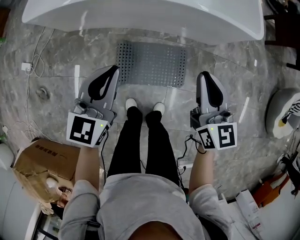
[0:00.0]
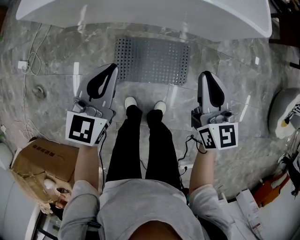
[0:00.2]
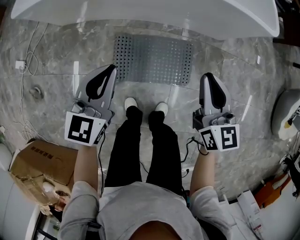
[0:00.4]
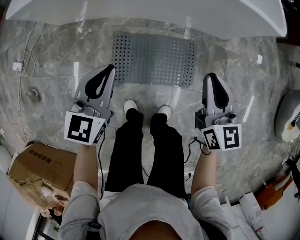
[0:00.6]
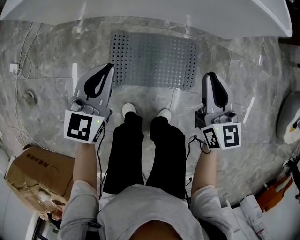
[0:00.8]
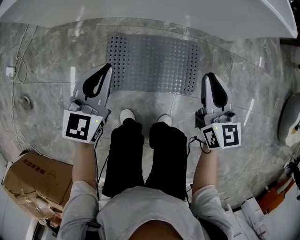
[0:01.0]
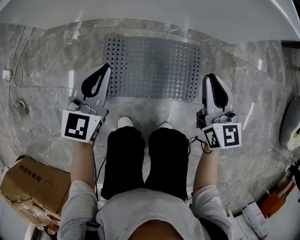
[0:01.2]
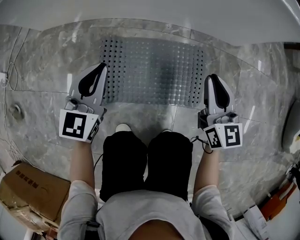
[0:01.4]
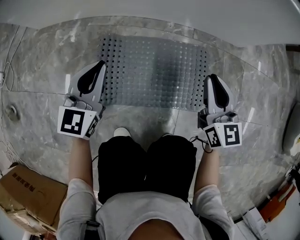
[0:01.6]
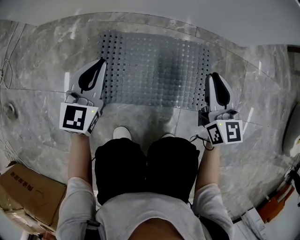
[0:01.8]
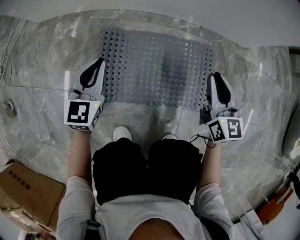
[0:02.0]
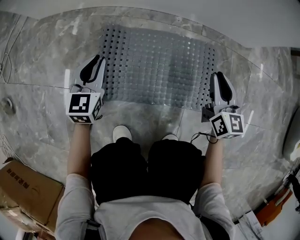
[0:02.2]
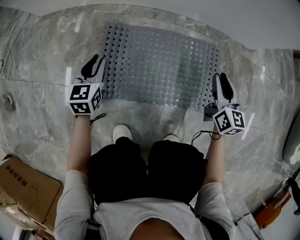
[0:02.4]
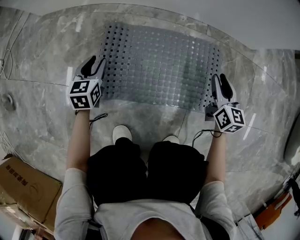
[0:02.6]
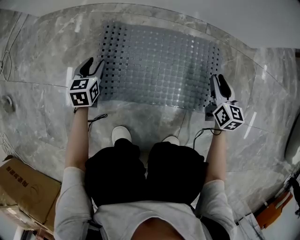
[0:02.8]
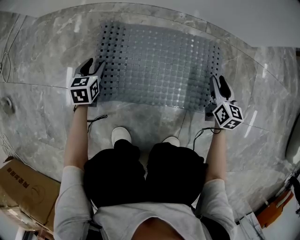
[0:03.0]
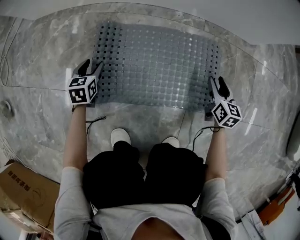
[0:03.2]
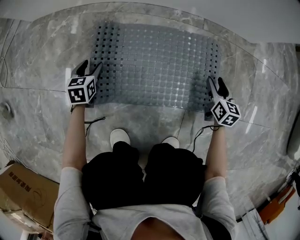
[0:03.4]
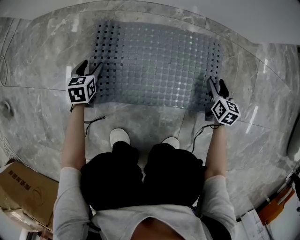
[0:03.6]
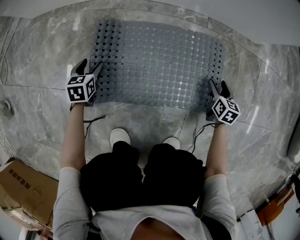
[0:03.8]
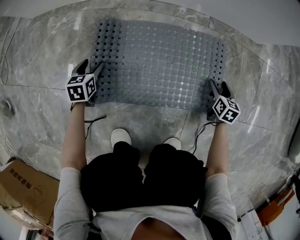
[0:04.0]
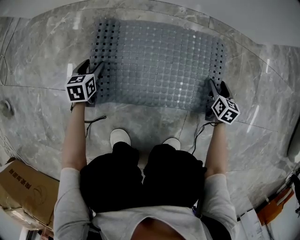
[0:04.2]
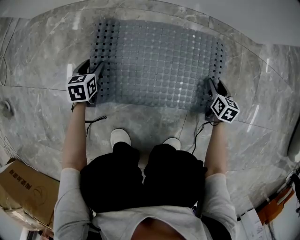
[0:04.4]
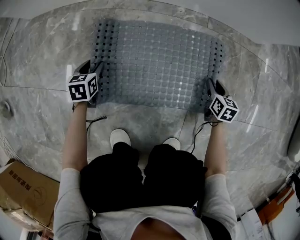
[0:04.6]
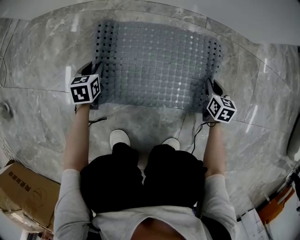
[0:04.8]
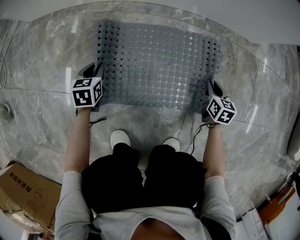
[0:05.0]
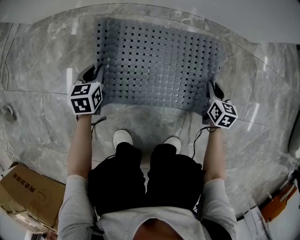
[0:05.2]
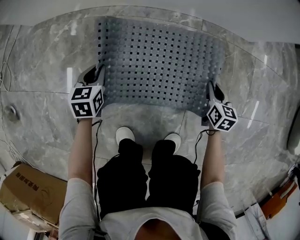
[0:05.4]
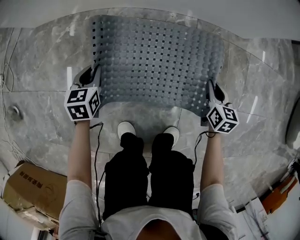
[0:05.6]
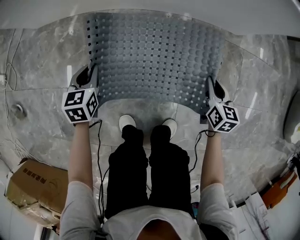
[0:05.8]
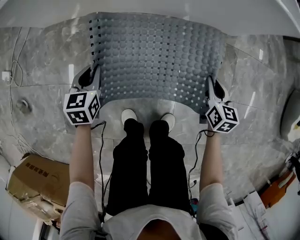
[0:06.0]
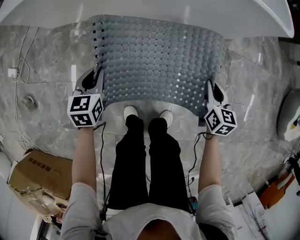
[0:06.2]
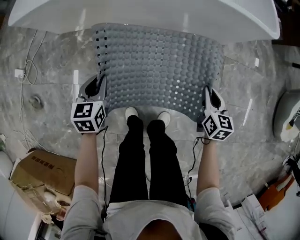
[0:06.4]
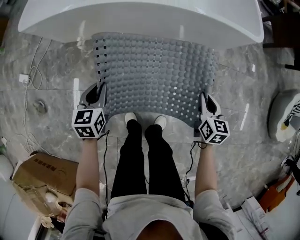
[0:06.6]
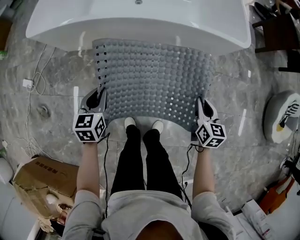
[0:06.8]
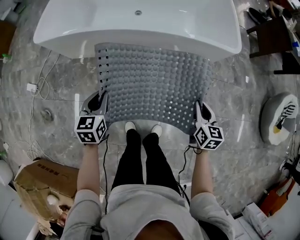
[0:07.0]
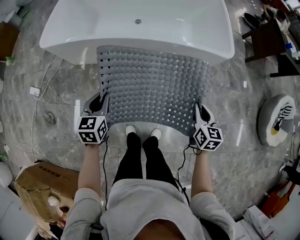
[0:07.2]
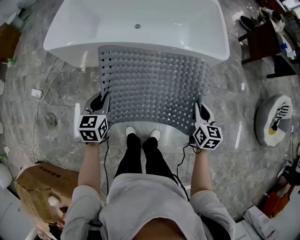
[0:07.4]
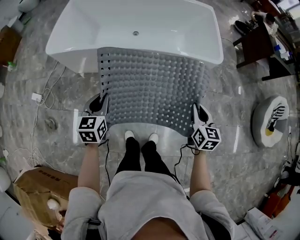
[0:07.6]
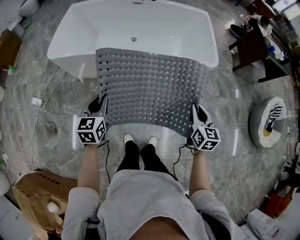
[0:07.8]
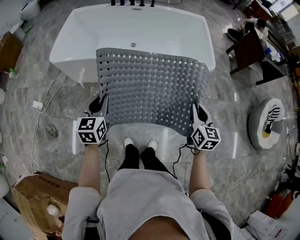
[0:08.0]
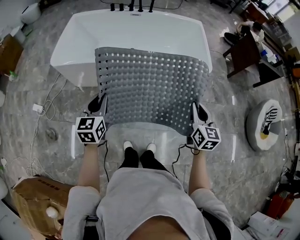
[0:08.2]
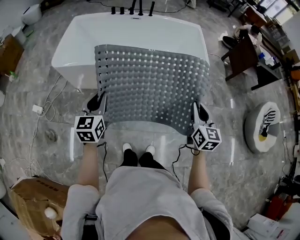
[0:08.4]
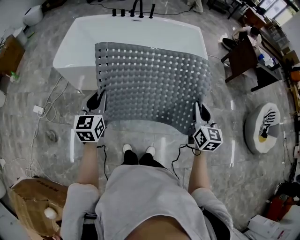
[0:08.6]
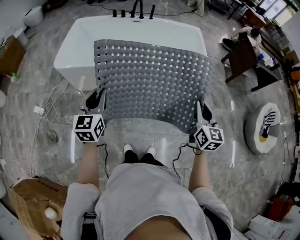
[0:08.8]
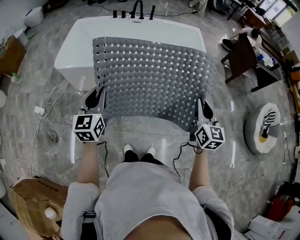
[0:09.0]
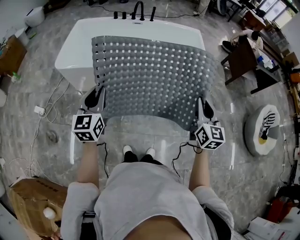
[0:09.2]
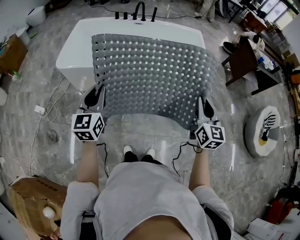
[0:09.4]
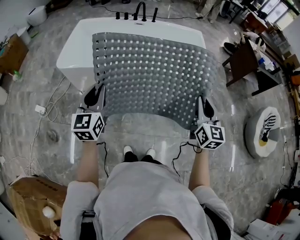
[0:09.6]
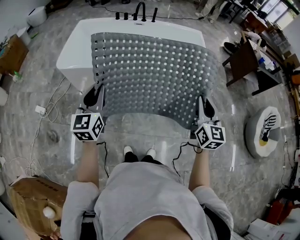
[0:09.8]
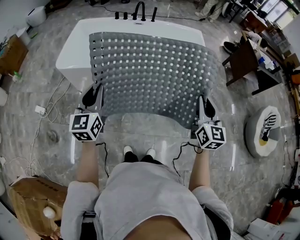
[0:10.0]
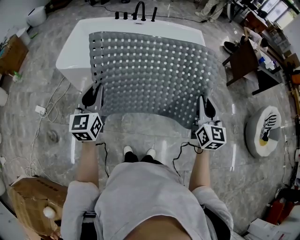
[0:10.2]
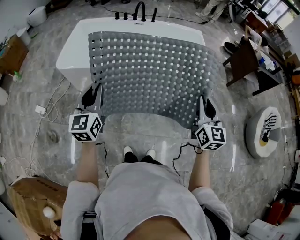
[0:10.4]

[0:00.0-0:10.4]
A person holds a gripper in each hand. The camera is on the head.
0.0 to 1.4 s: The two grippers go some 40 cm downward.
1.4 to 3.0 s: The grippers both shift downward by about 30 cm. The right gripper opens up. Meanwhile the left gripper swivels roughly 30 degrees, and opens.
3.0 to 4.4 s: The right gripper heads downward, covering approximately 10 cm.
4.4 to 6.0 s: Both grippers move upward, roughly 35 cm. The left gripper closes up, while the right gripper closes.
6.0 to 7.4 s: Both grippers travel together upward, approximately 50 cm.
7.4 to 9.0 s: Both grippers move upward, some 25 cm. The right gripper swivels about 20 degrees. The left gripper rotates roughly 20 degrees.
9.0 to 10.4 s: The grippers stay close to where they were, moving slightly.

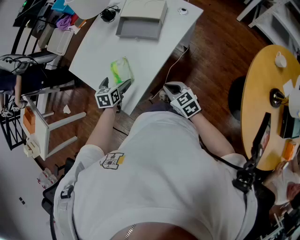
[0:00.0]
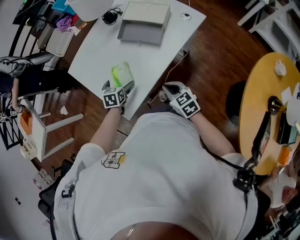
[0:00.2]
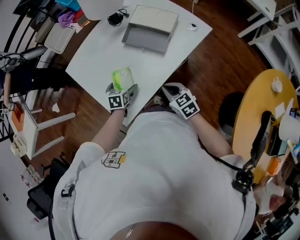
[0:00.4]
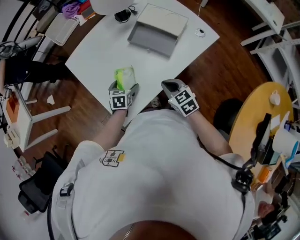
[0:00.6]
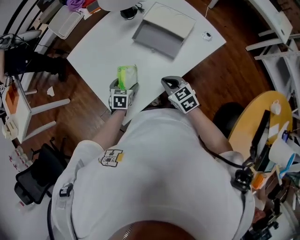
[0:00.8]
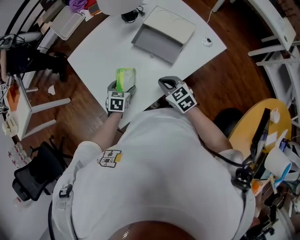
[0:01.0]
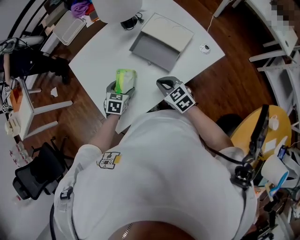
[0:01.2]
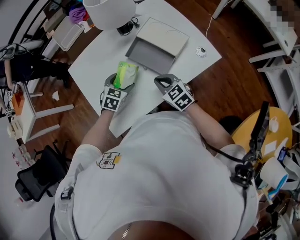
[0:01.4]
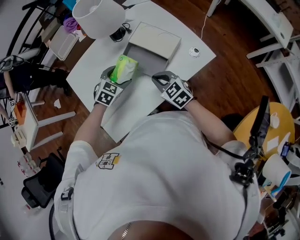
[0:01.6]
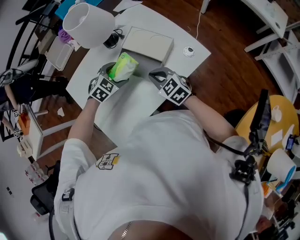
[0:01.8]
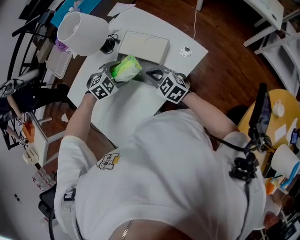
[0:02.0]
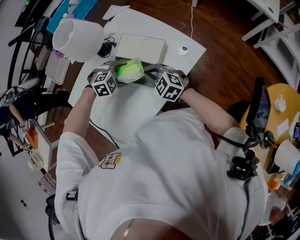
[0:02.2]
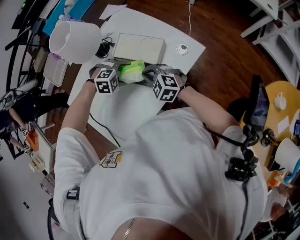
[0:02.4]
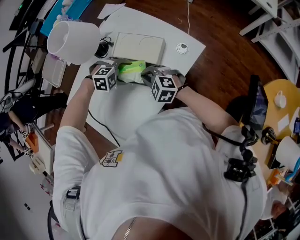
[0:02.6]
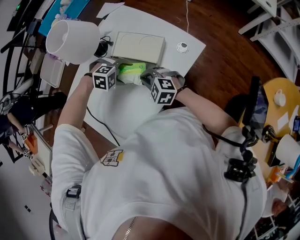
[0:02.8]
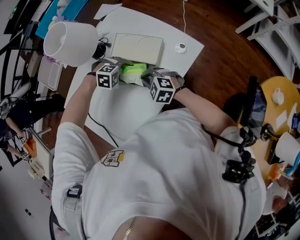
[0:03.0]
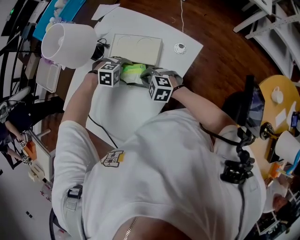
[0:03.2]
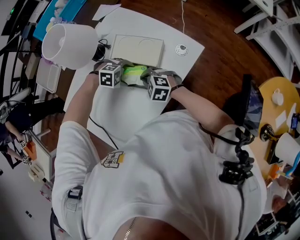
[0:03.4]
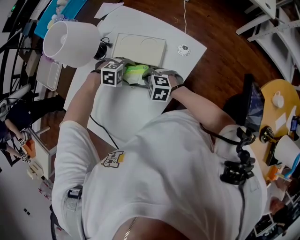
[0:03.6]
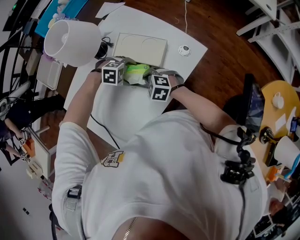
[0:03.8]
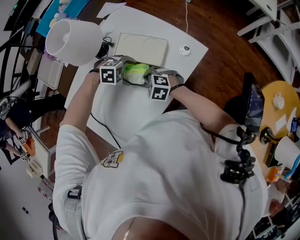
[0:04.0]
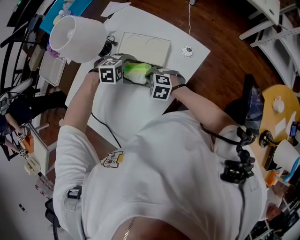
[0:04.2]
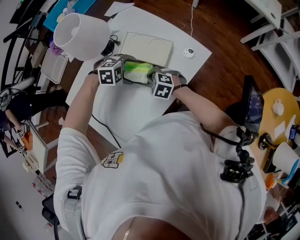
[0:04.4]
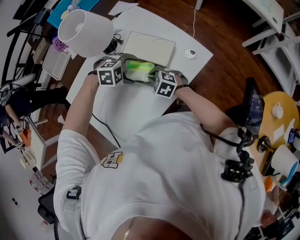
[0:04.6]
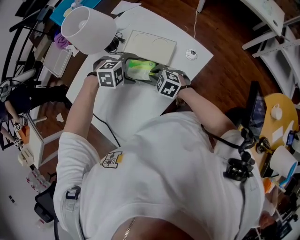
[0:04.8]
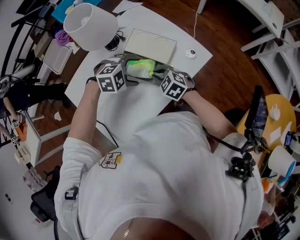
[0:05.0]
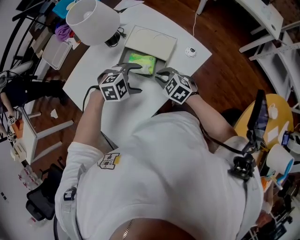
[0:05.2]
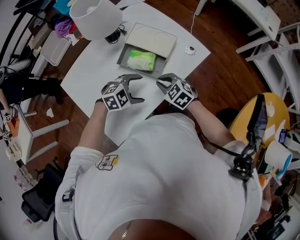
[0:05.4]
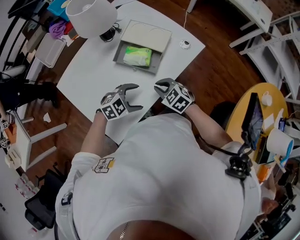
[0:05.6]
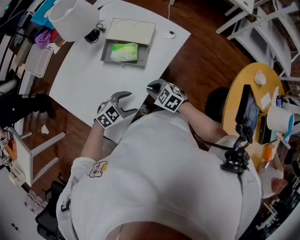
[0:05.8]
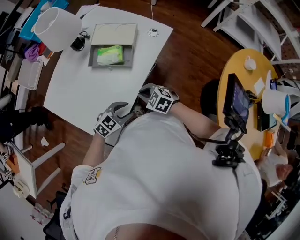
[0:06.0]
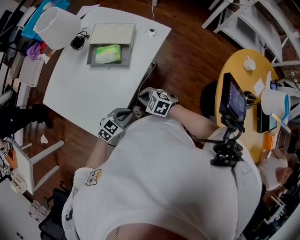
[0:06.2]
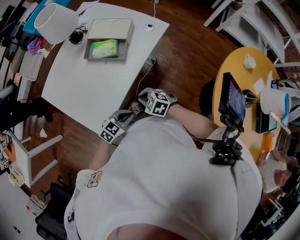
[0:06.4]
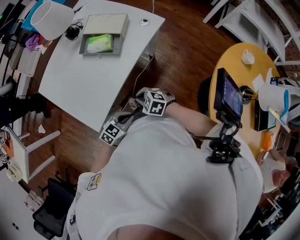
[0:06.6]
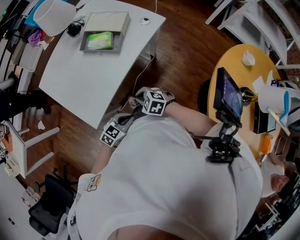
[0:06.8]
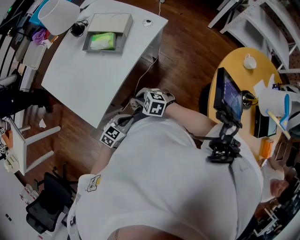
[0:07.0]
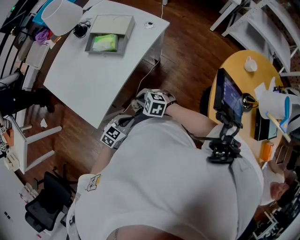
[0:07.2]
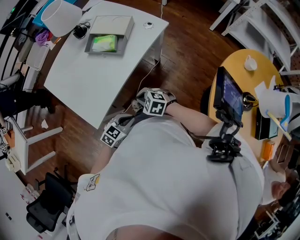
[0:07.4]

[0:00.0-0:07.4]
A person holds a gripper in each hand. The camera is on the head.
0.0 to 1.4 s: The left gripper shifts some 15 cm forward and to the right, while the right gripper travels forward by roughly 25 cm, and turns by approximately 30 degrees.
1.4 to 3.0 s: The left gripper changes place by approximately 15 cm, and twists roughly 80 degrees clockwise, seen from behind. The right gripper changes place by some 10 cm.
3.0 to 4.4 s: The grippers stay close to where they were, moving slightly.
4.4 to 6.0 s: The right gripper changes place by some 20 cm. The left gripper goes upward and returns, roughly 5 cm each way, rotates approximately 40 degrees, and closes.
6.0 to 7.4 s: The right gripper ends up some 15 cm from where it was. Meanwhile the left gripper changes place by about 15 cm.

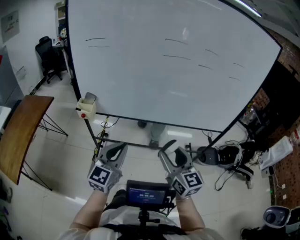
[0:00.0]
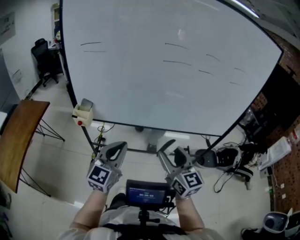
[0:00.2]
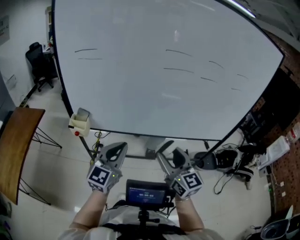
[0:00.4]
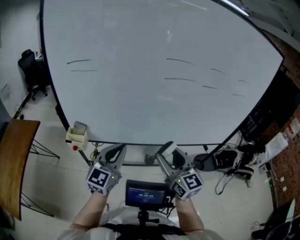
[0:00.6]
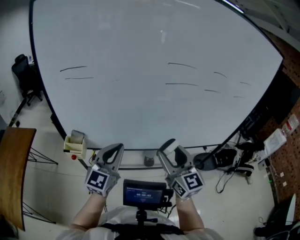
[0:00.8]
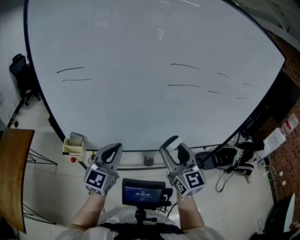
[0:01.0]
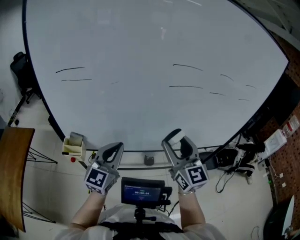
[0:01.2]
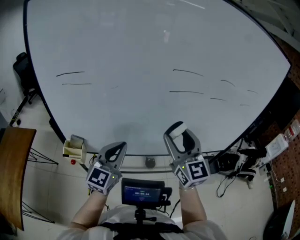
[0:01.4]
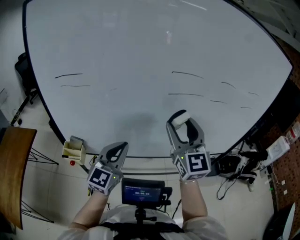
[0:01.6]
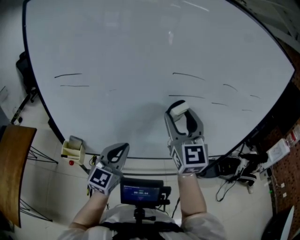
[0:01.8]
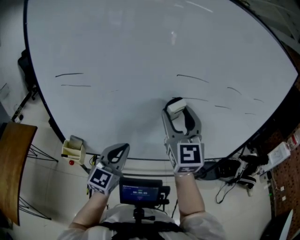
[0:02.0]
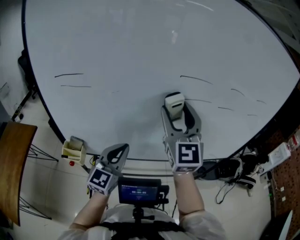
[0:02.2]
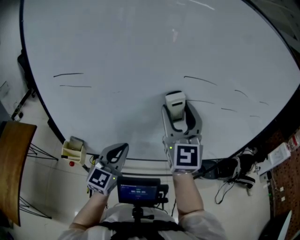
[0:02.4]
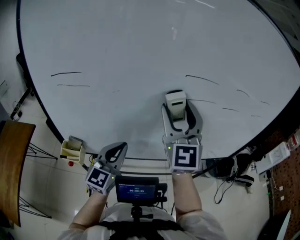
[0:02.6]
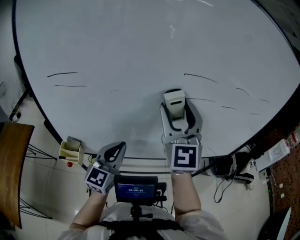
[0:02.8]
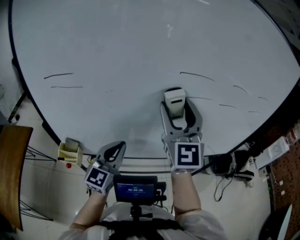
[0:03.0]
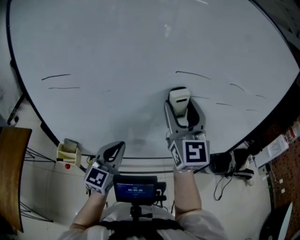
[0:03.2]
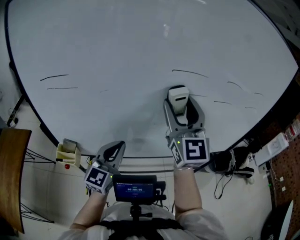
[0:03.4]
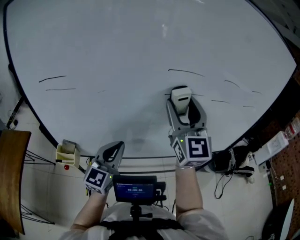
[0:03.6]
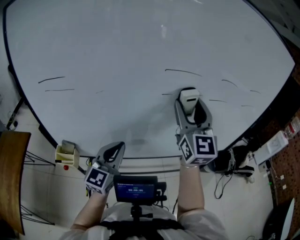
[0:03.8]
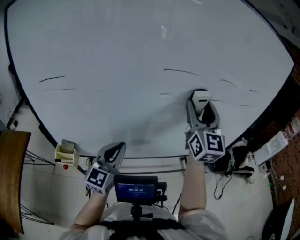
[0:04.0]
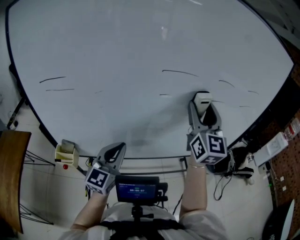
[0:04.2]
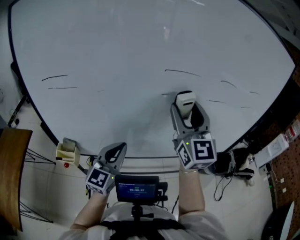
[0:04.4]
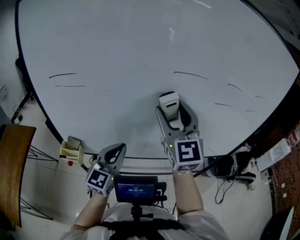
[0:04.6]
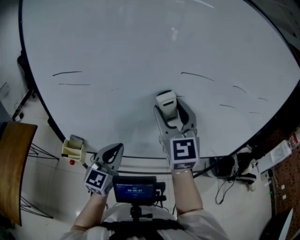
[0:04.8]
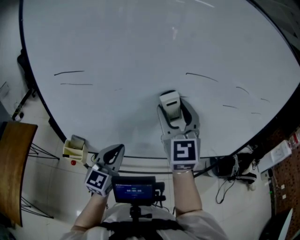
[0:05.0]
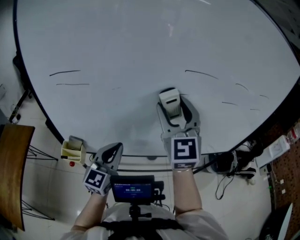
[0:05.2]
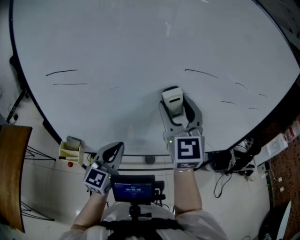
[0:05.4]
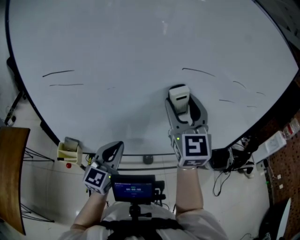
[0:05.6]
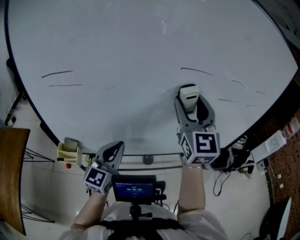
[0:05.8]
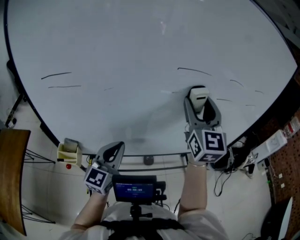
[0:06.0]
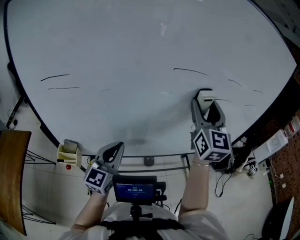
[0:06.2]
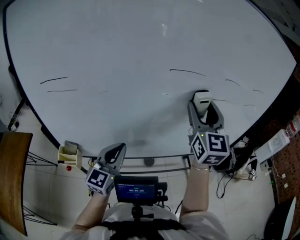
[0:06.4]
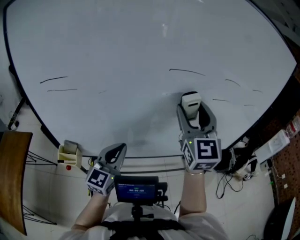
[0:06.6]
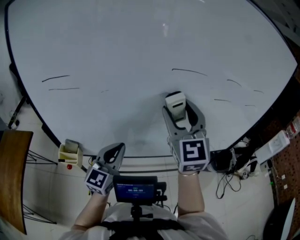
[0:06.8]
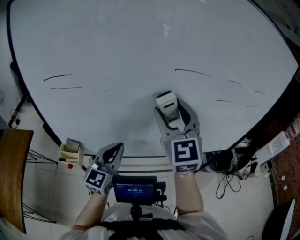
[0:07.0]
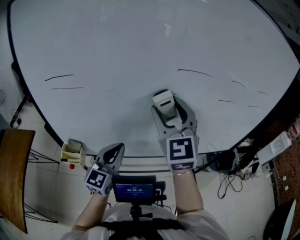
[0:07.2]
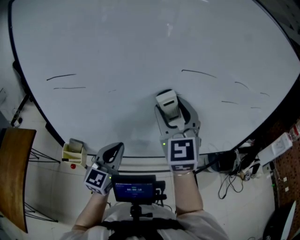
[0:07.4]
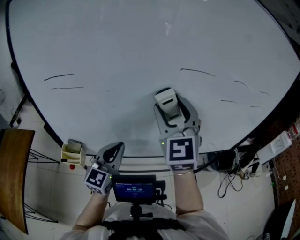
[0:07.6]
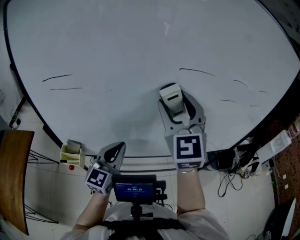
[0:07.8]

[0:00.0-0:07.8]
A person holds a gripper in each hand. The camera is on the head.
0.0 to 1.6 s: The right gripper heads forward and upward, covering some 30 cm, and changes its angle by about 30 degrees, while the left gripper heads forward, covering some 25 cm.
1.6 to 3.2 s: The right gripper travels forward by approximately 5 cm.
3.2 to 4.6 s: The right gripper travels to the right and back again, approximately 10 cm each way.
4.6 to 6.2 s: The right gripper moves to the right, roughly 10 cm, and swivels roughly 20 degrees.
6.2 to 7.8 s: The right gripper travels to the left by roughly 15 cm, and changes its angle by roughly 20 degrees.
